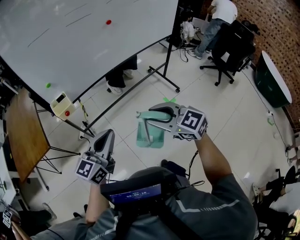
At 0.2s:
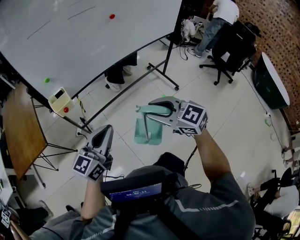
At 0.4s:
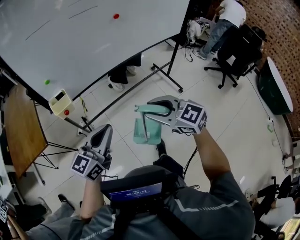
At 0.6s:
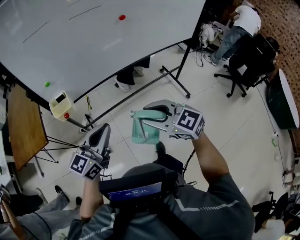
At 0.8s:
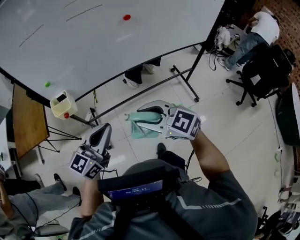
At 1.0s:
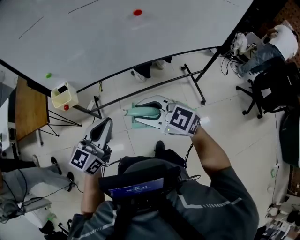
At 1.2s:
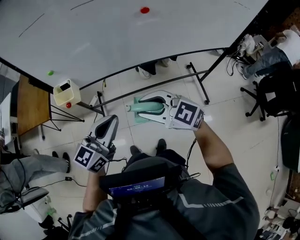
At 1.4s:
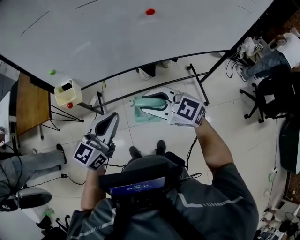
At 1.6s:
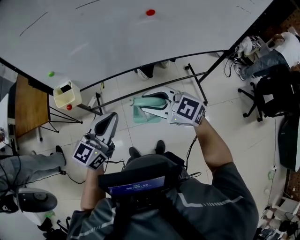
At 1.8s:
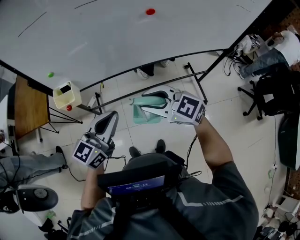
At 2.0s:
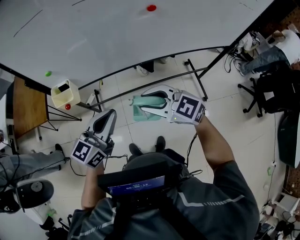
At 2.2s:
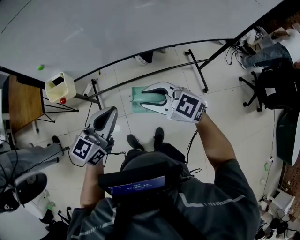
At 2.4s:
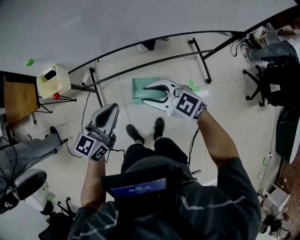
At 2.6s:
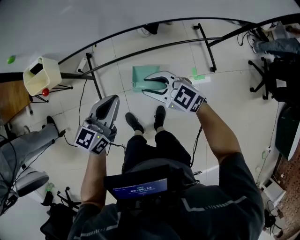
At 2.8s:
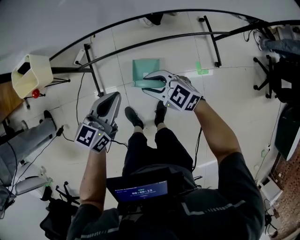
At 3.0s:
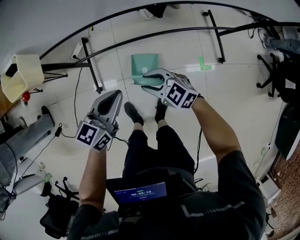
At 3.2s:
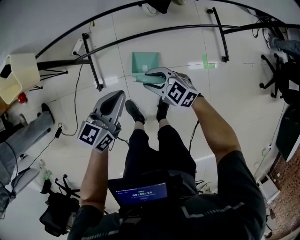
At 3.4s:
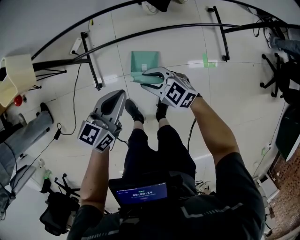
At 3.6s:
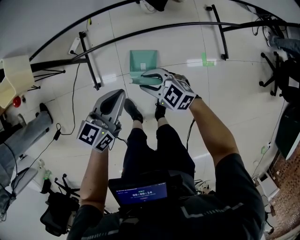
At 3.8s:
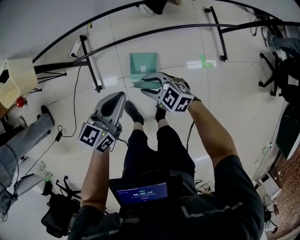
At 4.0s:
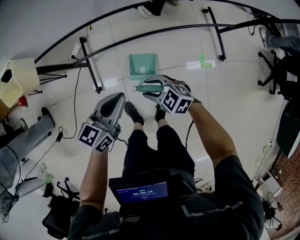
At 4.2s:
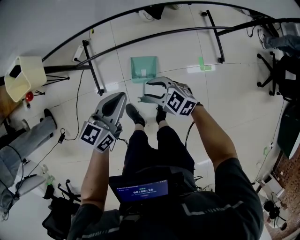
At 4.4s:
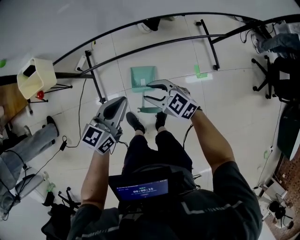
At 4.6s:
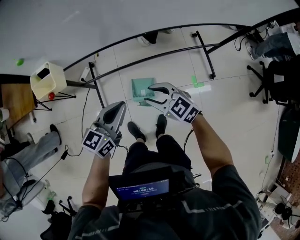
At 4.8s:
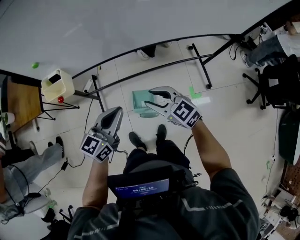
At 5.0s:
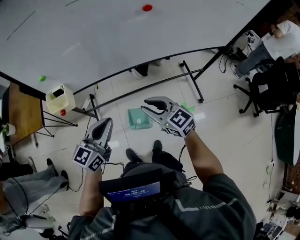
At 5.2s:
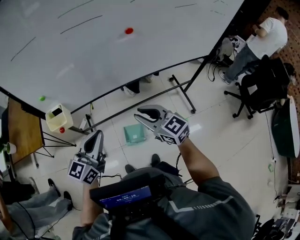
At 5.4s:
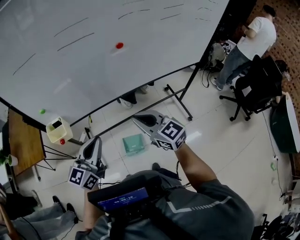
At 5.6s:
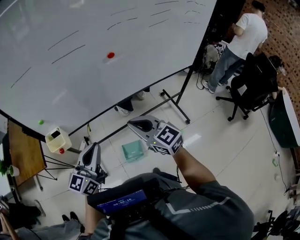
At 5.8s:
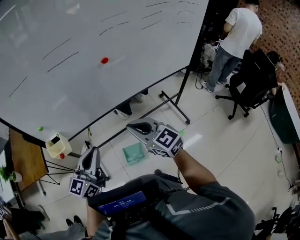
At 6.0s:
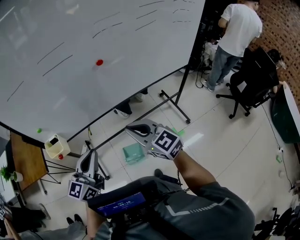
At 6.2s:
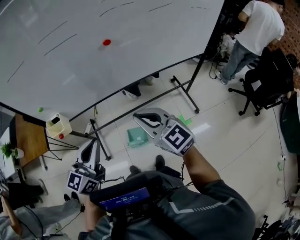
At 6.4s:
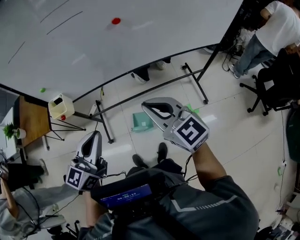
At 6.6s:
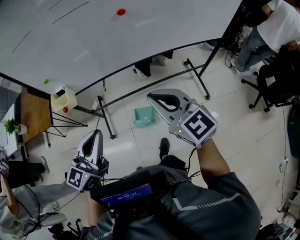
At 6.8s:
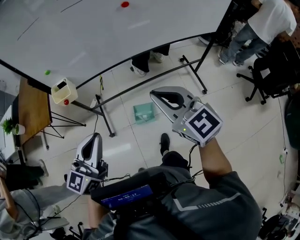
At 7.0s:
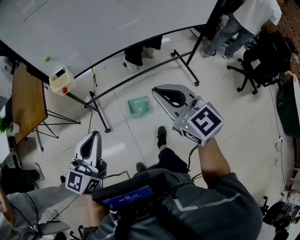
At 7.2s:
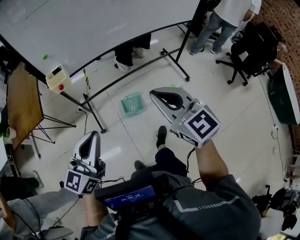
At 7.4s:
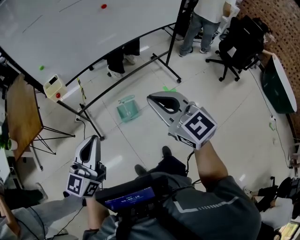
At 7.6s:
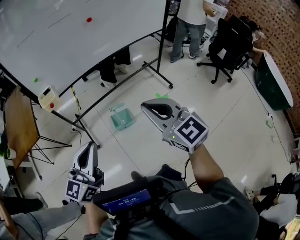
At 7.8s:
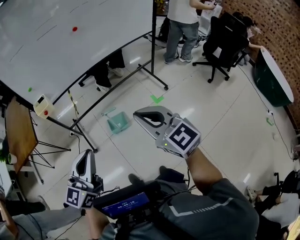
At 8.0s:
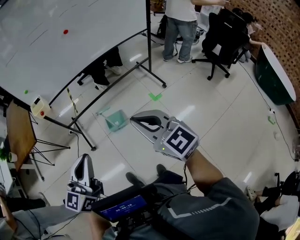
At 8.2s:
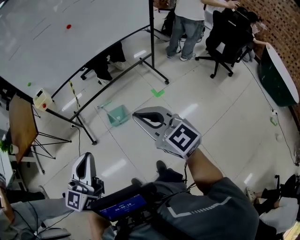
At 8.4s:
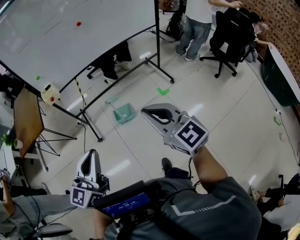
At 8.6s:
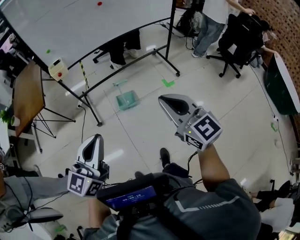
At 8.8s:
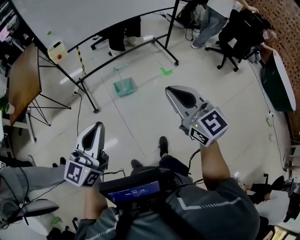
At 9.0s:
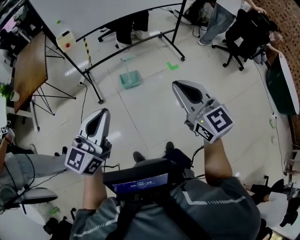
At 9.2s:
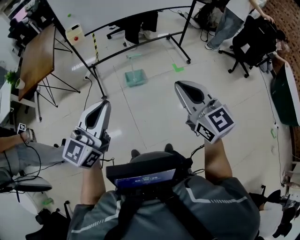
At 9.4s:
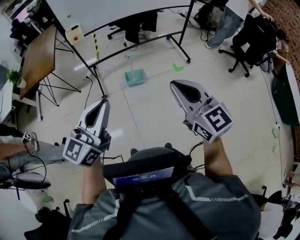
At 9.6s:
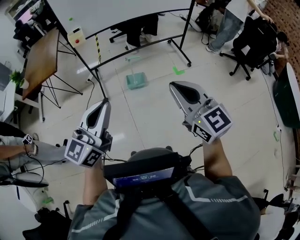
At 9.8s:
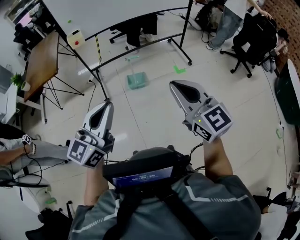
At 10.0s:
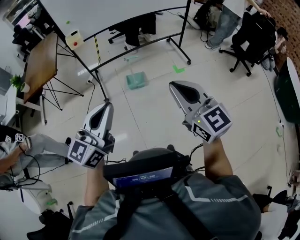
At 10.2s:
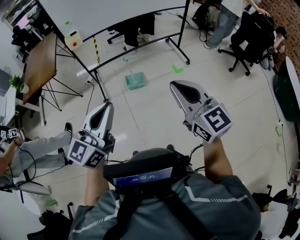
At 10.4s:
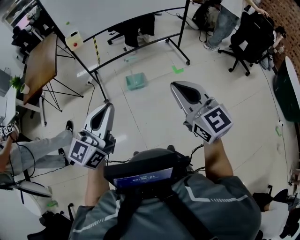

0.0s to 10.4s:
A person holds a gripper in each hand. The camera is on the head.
0.0s to 1.4s: The right gripper shifts by roughly 35 cm, and changes its angle by roughly 30 degrees. Meanwhile the left gripper moves about 30 cm.
1.4s to 3.0s: The two grippers go some 40 cm downward. The left gripper rotates roughly 20 degrees.
3.0s to 4.4s: The grippers both shift upward by about 5 cm.
4.4s to 6.0s: The two grippers go roughly 40 cm upward. The right gripper changes its angle by some 40 degrees, and closes; the left gripper rotates some 30 degrees.
6.0s to 7.4s: The two grippers go some 35 cm backward.
7.4s to 9.0s: The two grippers go some 35 cm backward.
9.0s to 10.4s: The right gripper shifts some 10 cm backward and to the right. Meanwhile the left gripper travels to the right and backward by approximately 10 cm.

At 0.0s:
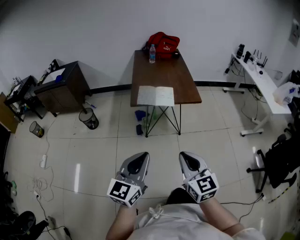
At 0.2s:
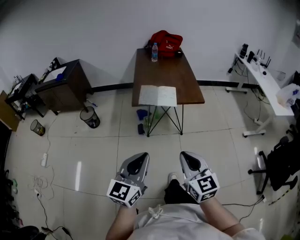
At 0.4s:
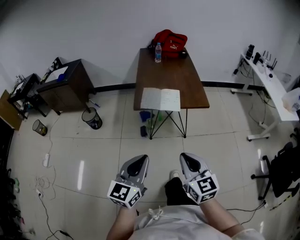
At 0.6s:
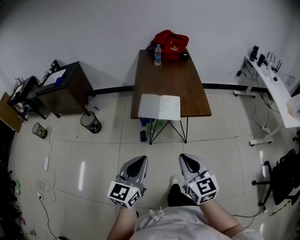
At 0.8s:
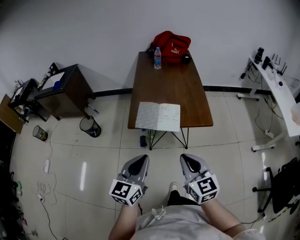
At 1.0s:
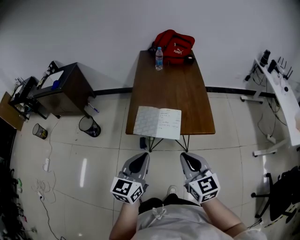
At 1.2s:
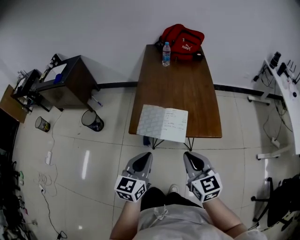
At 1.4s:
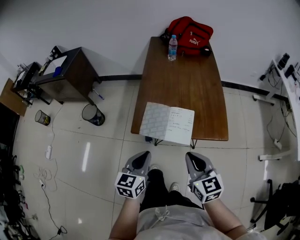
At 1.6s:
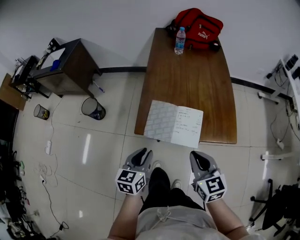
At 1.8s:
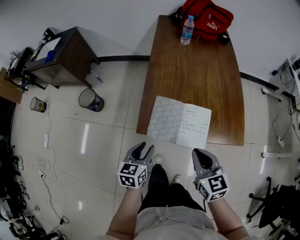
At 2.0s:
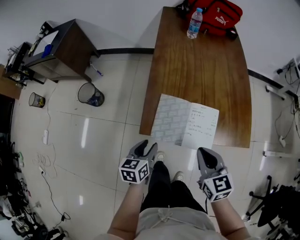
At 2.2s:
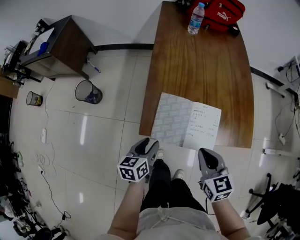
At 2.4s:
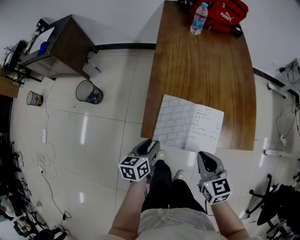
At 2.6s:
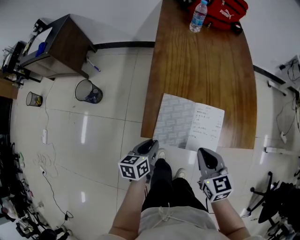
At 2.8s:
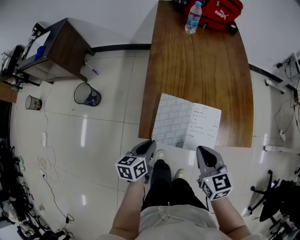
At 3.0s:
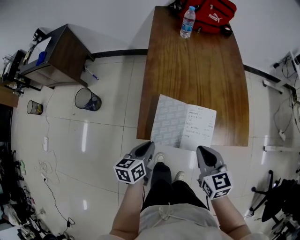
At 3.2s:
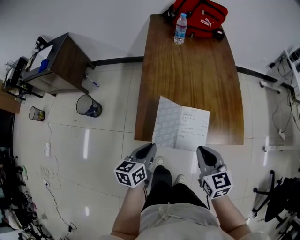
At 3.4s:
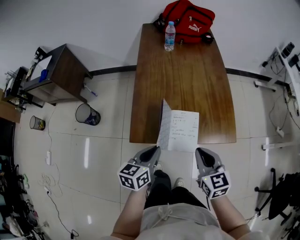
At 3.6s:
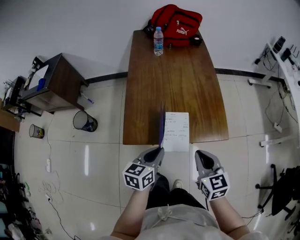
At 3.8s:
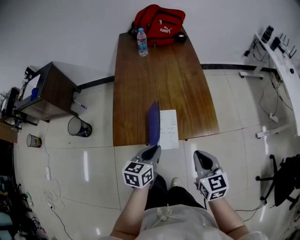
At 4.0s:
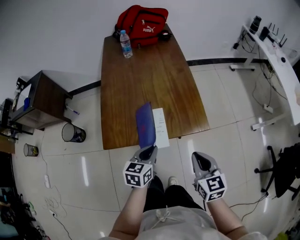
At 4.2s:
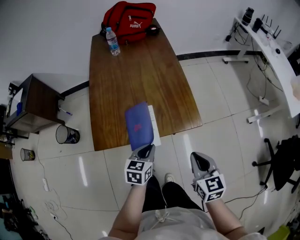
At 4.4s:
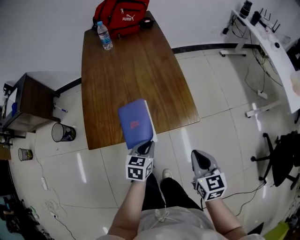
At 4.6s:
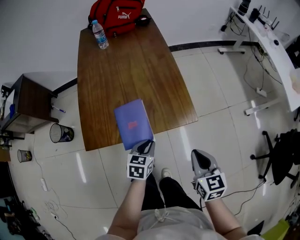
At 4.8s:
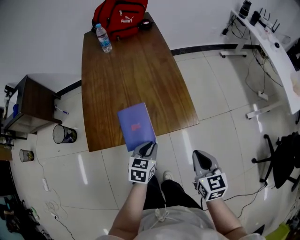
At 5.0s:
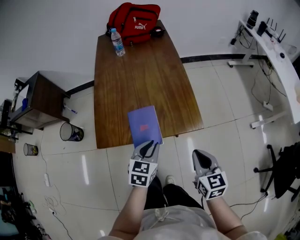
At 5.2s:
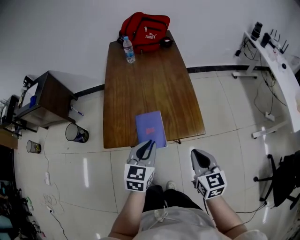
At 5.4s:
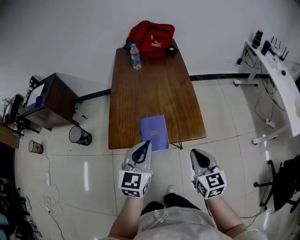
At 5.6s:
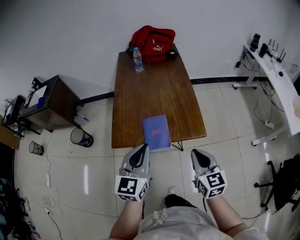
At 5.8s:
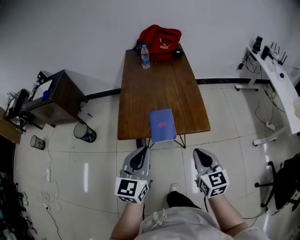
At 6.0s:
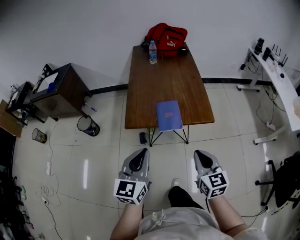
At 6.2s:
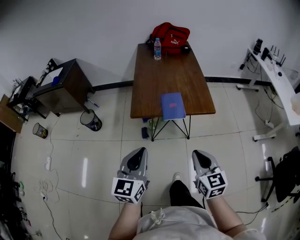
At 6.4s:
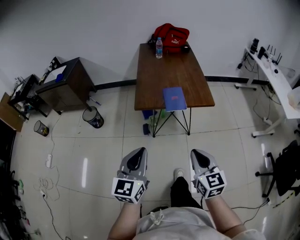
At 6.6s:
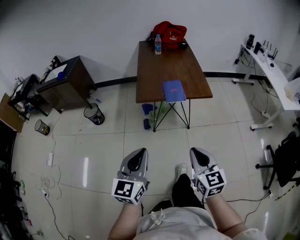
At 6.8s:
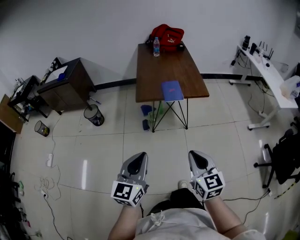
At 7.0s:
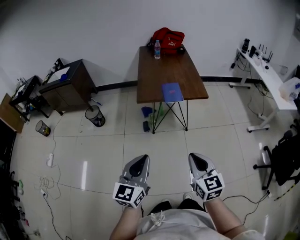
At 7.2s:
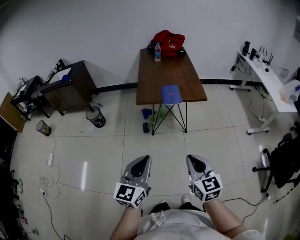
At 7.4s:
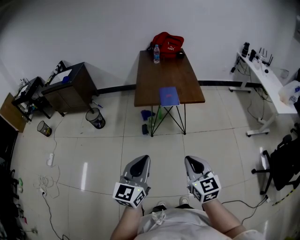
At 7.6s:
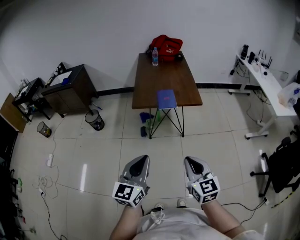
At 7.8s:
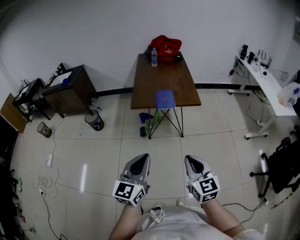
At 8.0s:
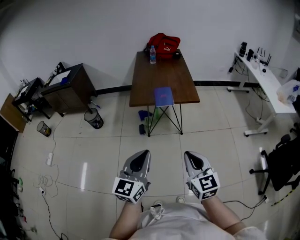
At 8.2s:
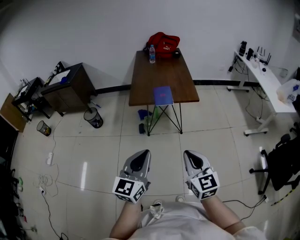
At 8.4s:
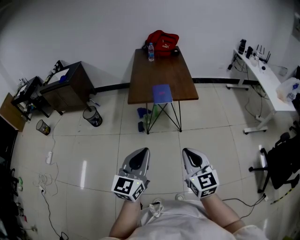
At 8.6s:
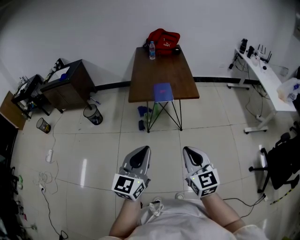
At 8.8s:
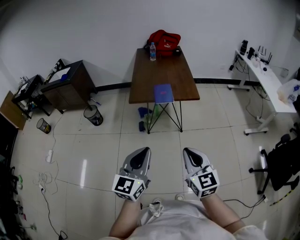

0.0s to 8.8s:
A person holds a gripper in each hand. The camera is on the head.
0.0s to 1.4s: The two grippers travel together, forward, some 40 cm. The left gripper changes its angle by approximately 30 degrees.
1.4s to 3.0s: The left gripper shifts some 20 cm downward, forward and to the left, changes its angle by roughly 30 degrees, and opens and closes again, while the right gripper goes about 15 cm forward and downward.
3.0s to 4.4s: The grippers both shift to the right by approximately 25 cm. The left gripper swivels some 30 degrees; the right gripper turns by roughly 20 degrees.
4.4s to 5.8s: The right gripper shifts some 15 cm upward, to the left and backward. The left gripper heads upward and backward, covering some 30 cm, and angles its fingers upward, by some 30 degrees.
5.8s to 7.4s: The two grippers go approximately 40 cm backward.
7.4s to 8.8s: The left gripper goes roughly 5 cm to the right.

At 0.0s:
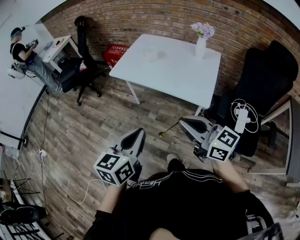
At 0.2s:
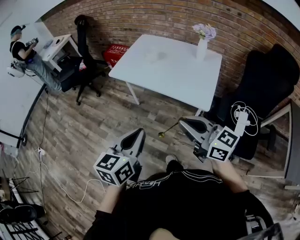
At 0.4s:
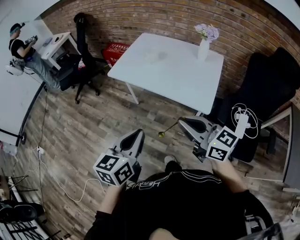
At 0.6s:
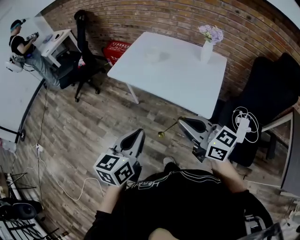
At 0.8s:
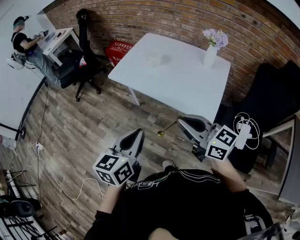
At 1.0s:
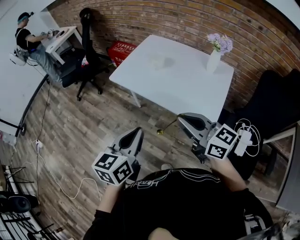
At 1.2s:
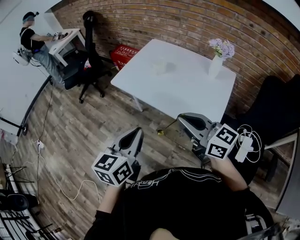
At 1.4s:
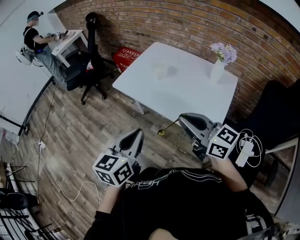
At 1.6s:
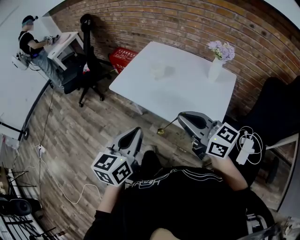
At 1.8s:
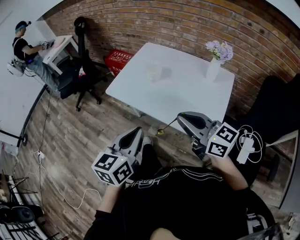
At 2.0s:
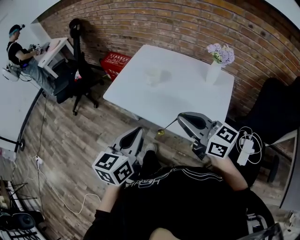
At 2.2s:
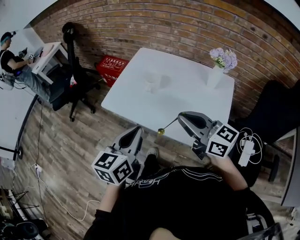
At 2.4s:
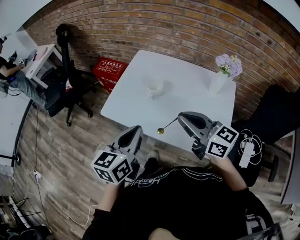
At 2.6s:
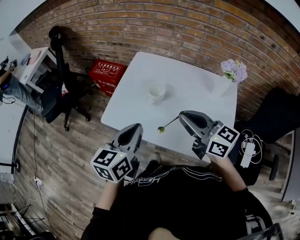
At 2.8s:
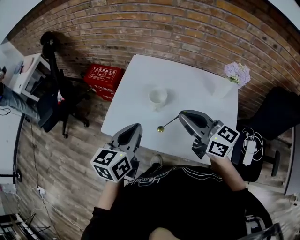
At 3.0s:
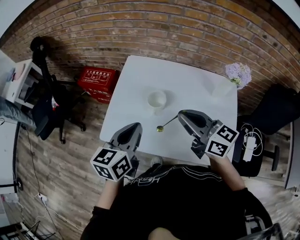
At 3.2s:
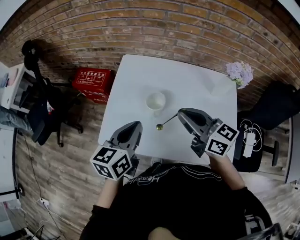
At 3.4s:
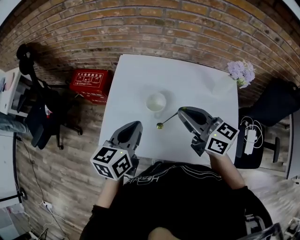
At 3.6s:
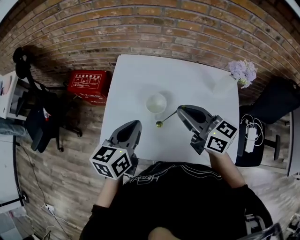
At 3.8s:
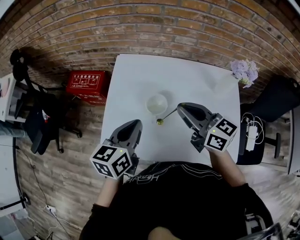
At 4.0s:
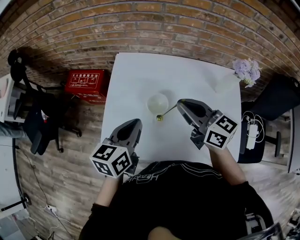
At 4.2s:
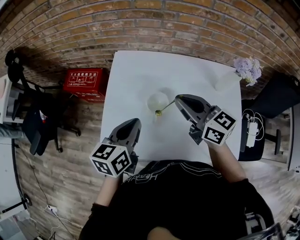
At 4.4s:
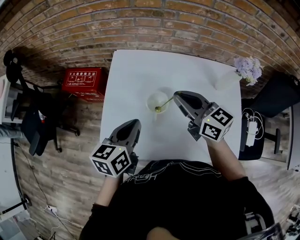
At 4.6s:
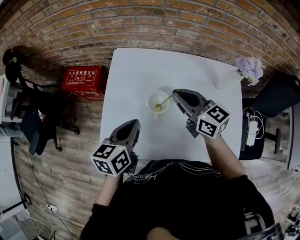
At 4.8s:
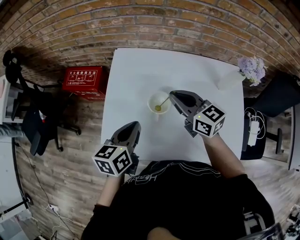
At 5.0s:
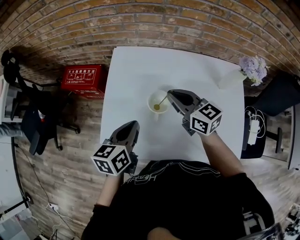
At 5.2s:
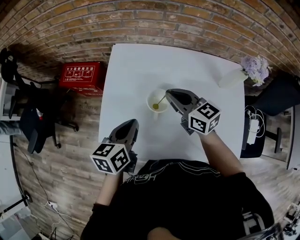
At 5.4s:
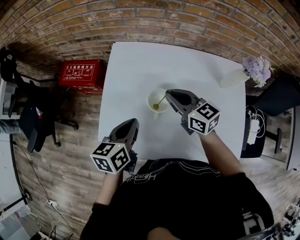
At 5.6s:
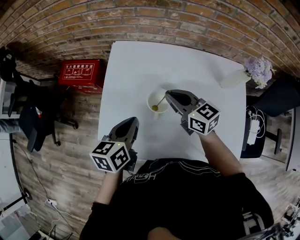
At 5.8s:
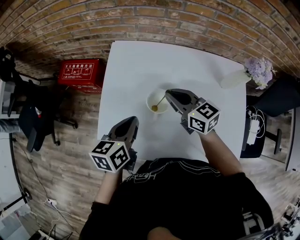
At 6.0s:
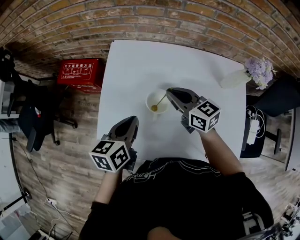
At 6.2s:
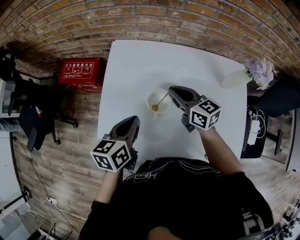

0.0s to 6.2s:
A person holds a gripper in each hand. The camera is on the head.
0.0s to 1.6s: The two grippers go approximately 20 cm forward.
1.6s to 3.2s: Both grippers travel together forward, some 35 cm. The left gripper swivels roughly 20 degrees, while the right gripper rotates some 30 degrees.
3.2s to 4.6s: The right gripper moves forward and downward, approximately 15 cm. Meanwhile the left gripper goes roughly 10 cm downward and forward.
4.6s to 6.2s: The right gripper is displaced downward by some 10 cm.
